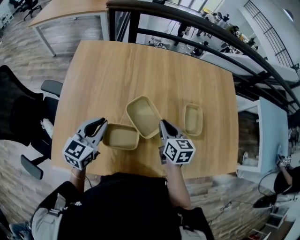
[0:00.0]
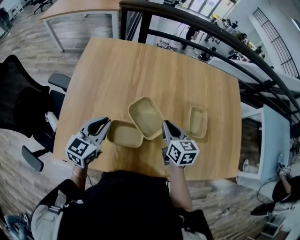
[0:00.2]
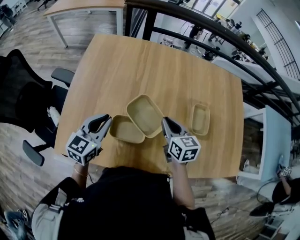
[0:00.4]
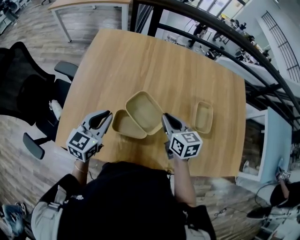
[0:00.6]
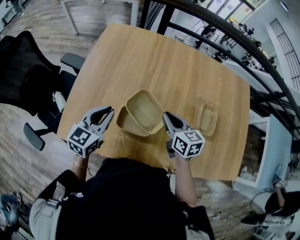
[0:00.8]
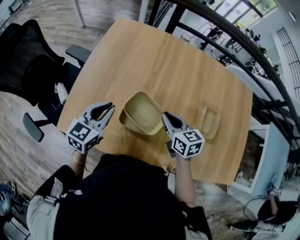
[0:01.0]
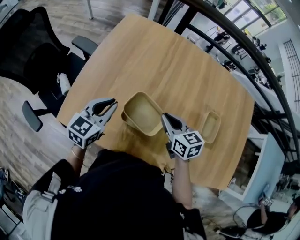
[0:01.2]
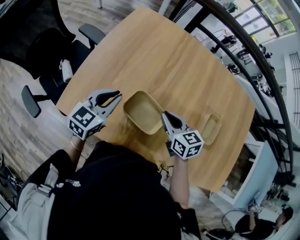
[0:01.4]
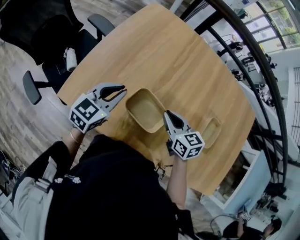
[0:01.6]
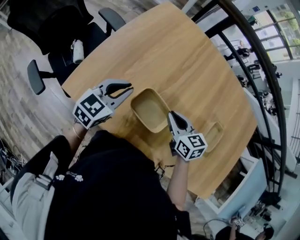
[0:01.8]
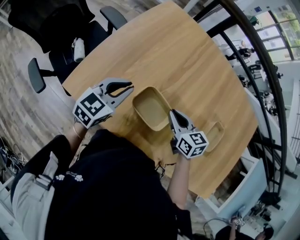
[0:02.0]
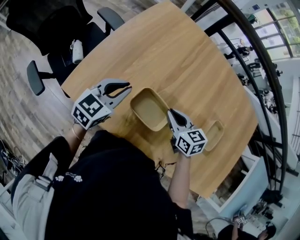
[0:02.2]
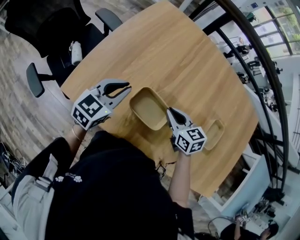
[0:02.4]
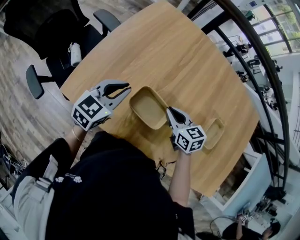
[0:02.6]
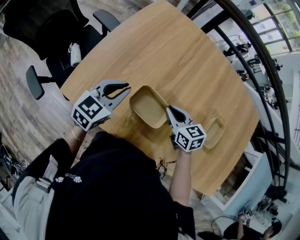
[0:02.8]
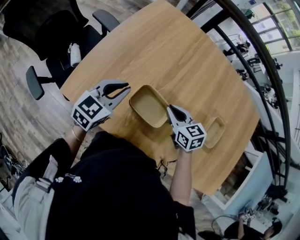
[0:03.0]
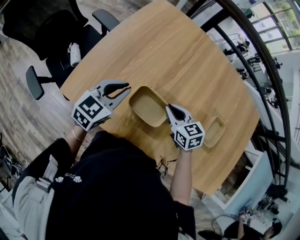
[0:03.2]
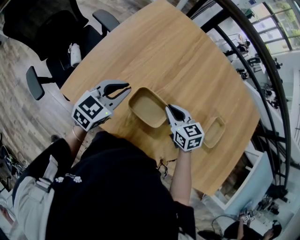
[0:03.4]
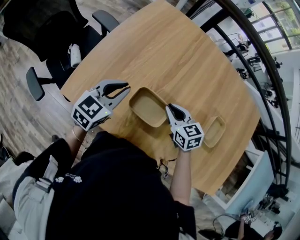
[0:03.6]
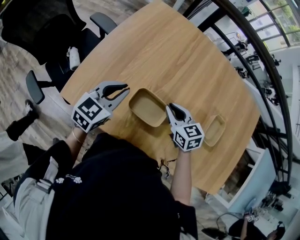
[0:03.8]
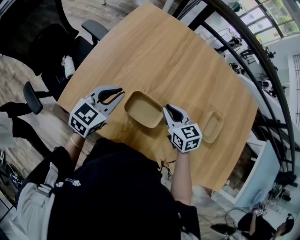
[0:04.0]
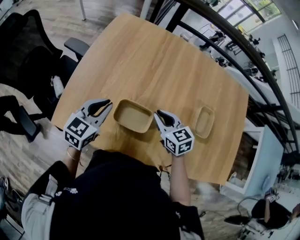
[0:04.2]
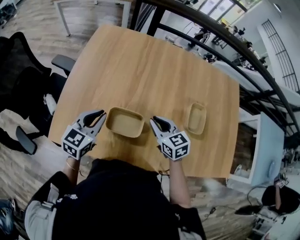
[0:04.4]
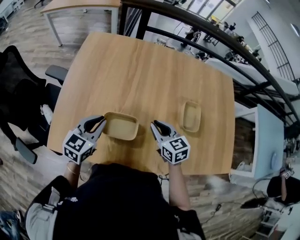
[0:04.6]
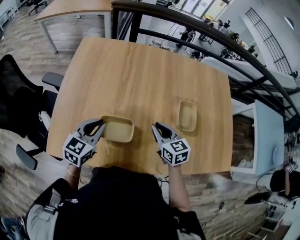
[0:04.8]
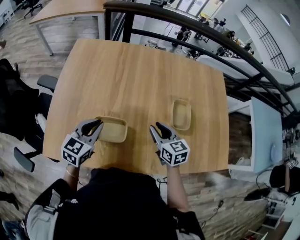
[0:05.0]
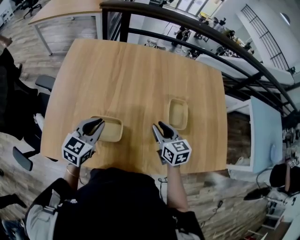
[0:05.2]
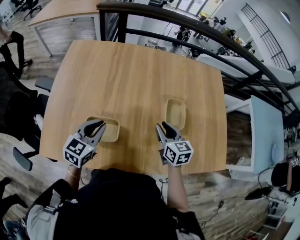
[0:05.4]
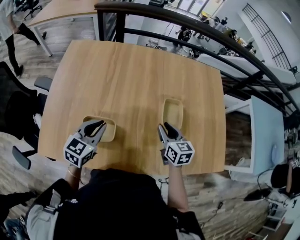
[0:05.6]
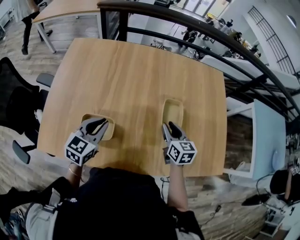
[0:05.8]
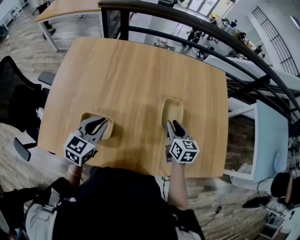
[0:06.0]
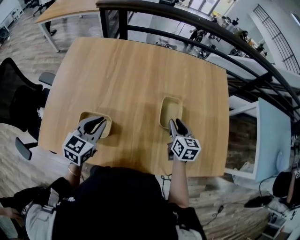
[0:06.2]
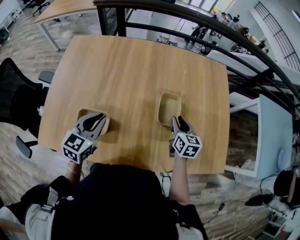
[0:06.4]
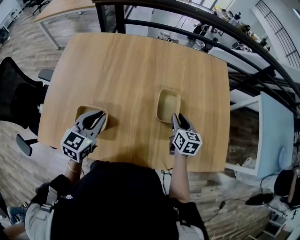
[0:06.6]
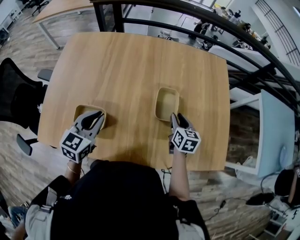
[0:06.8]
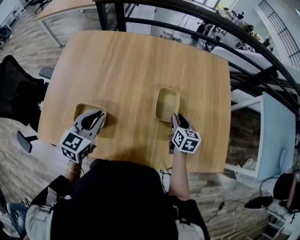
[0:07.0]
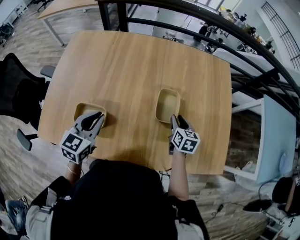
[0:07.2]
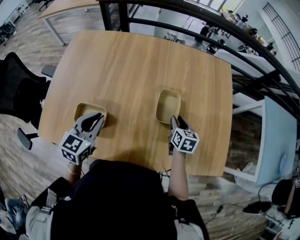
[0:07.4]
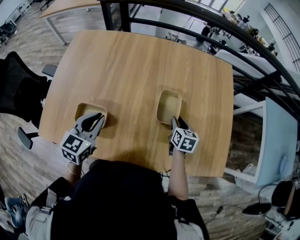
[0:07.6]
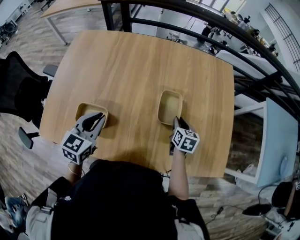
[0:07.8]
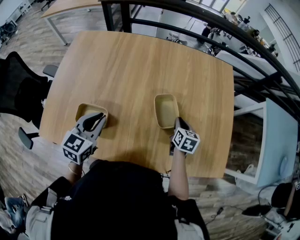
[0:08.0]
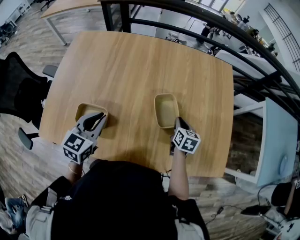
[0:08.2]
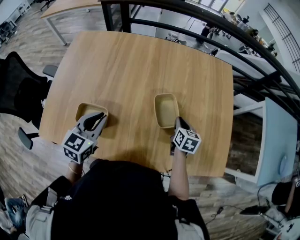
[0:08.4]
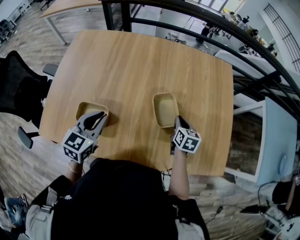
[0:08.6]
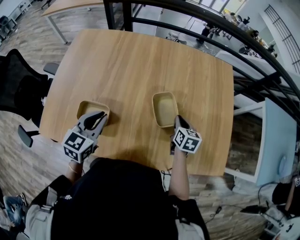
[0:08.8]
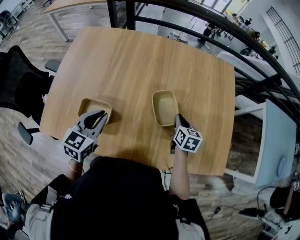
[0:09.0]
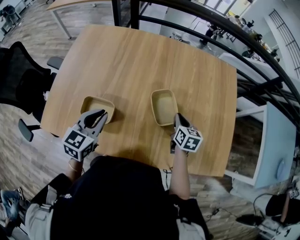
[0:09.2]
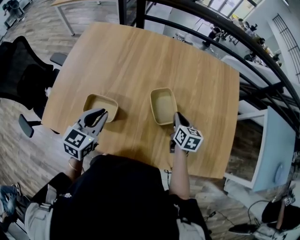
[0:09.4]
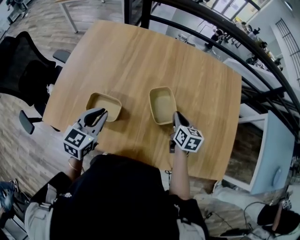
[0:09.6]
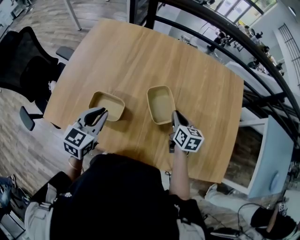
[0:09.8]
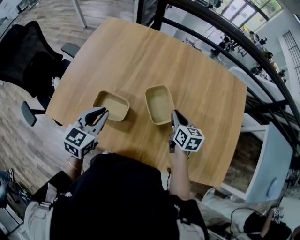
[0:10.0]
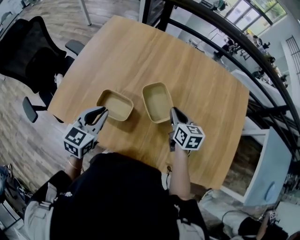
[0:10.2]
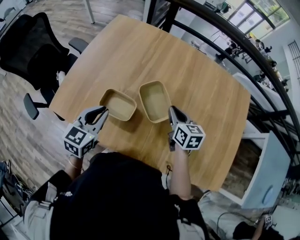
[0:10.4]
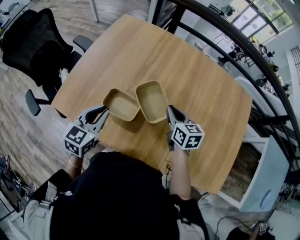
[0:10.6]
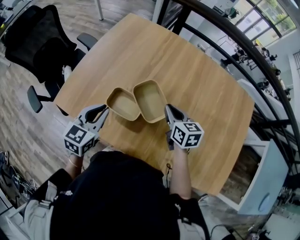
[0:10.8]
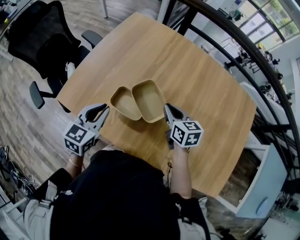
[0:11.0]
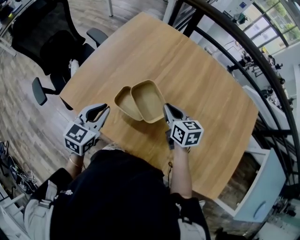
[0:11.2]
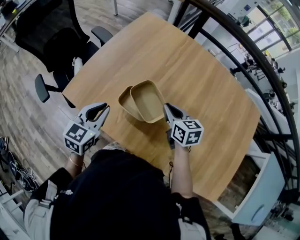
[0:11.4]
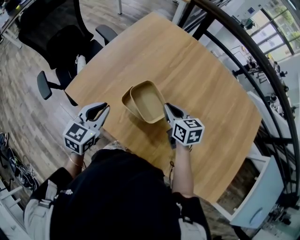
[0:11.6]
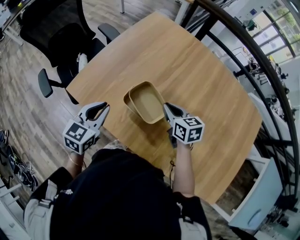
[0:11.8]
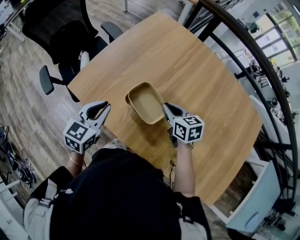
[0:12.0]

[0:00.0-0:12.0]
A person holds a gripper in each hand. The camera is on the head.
0:00.0 to 0:01.6: The right gripper changes place by approximately 10 cm, and turns by about 40 degrees; the left gripper shifts by about 10 cm.
0:01.6 to 0:03.0: There are only small adjustments of the grippers.
0:03.0 to 0:04.4: The right gripper ends up some 5 cm from where it was.
0:04.4 to 0:06.0: The left gripper moves to the right, about 15 cm; the right gripper travels to the right by about 25 cm, and changes its angle by roughly 30 degrees.
0:06.0 to 0:07.6: The right gripper is displaced to the right and downward by approximately 10 cm.
0:07.6 to 0:09.0: The grippers stay close to where they were, moving slightly.
0:09.0 to 0:10.4: The right gripper goes approximately 20 cm to the left, and turns by some 30 degrees. The left gripper shifts roughly 10 cm to the left.
0:10.4 to 0:12.0: The right gripper heads to the left, covering about 15 cm, and turns by about 30 degrees. Meanwhile the left gripper moves to the left, approximately 10 cm.

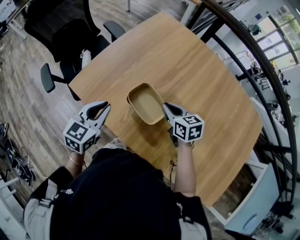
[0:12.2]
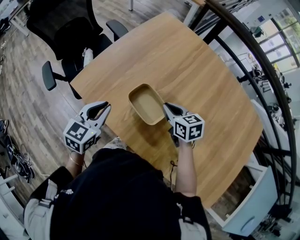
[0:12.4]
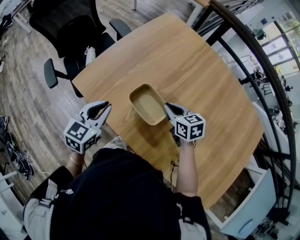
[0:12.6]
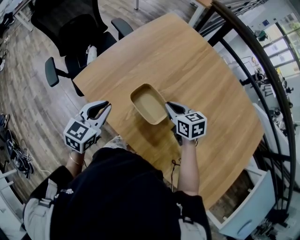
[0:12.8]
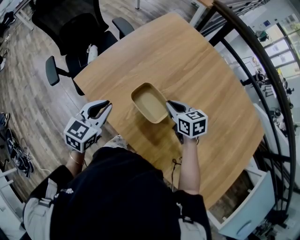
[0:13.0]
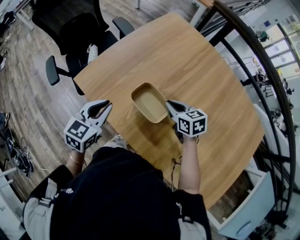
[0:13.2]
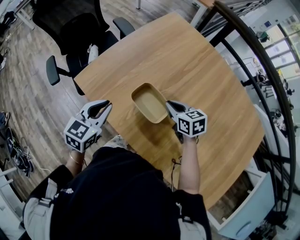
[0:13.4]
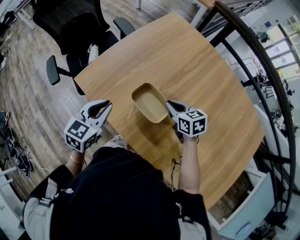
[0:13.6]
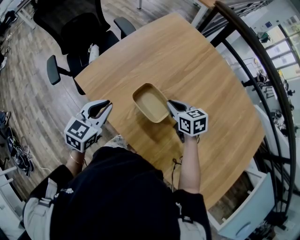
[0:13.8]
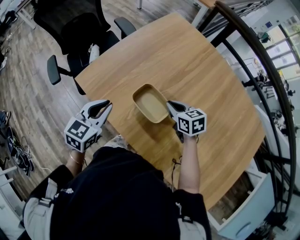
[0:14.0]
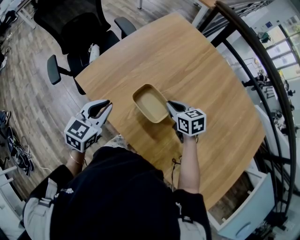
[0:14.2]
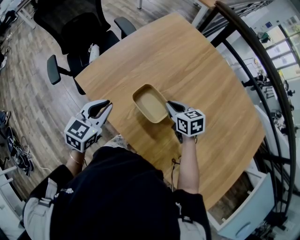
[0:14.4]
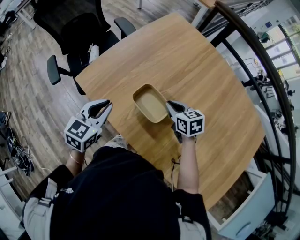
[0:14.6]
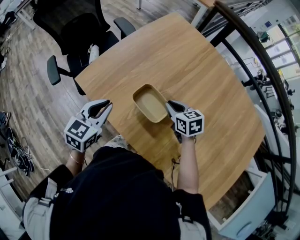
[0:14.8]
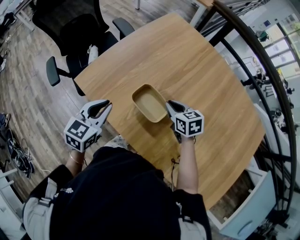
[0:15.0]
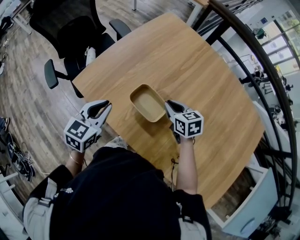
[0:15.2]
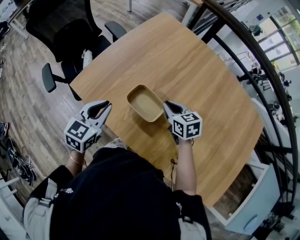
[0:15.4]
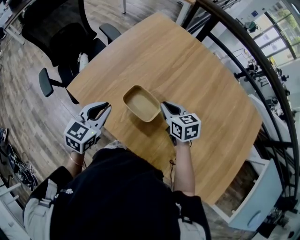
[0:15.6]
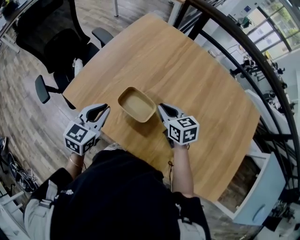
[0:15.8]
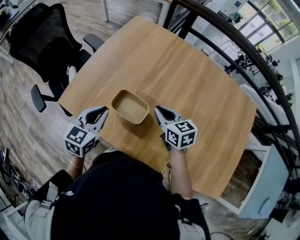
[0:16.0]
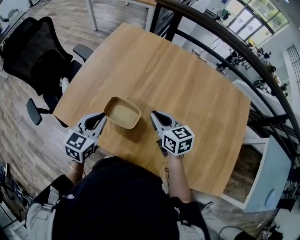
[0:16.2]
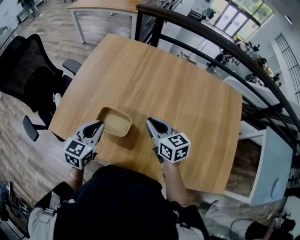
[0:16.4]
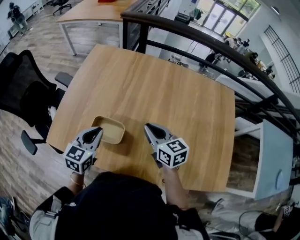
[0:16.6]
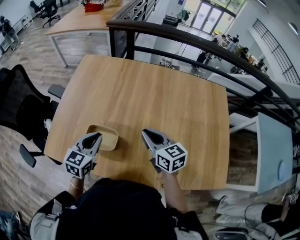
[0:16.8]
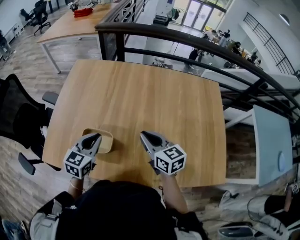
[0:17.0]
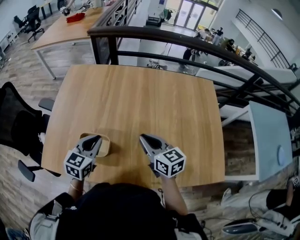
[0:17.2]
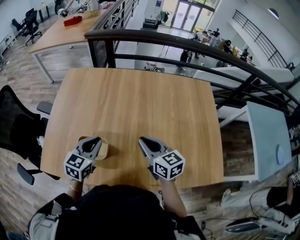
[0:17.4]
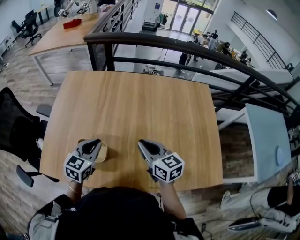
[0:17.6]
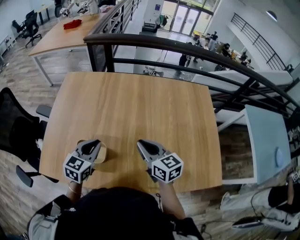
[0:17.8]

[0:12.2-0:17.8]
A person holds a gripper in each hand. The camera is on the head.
0:12.2 to 0:15.0: The grippers stay close to where they were, moving slightly.
0:15.0 to 0:16.4: The right gripper moves upward, to the right and backward, some 15 cm, and changes its angle by about 30 degrees, while the left gripper shifts roughly 10 cm to the right.
0:16.4 to 0:17.8: Both grippers move to the right, about 10 cm.

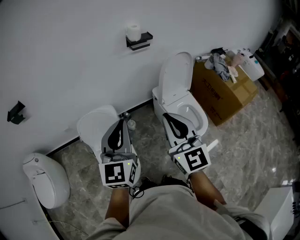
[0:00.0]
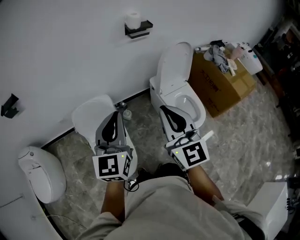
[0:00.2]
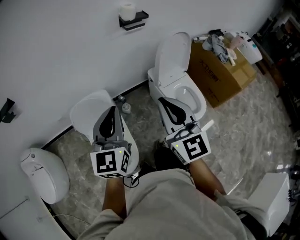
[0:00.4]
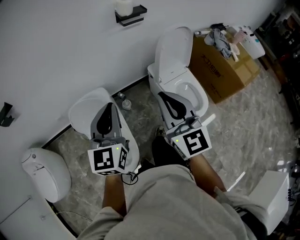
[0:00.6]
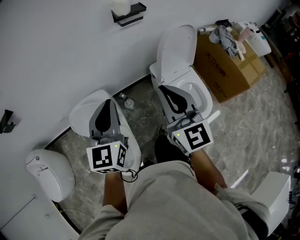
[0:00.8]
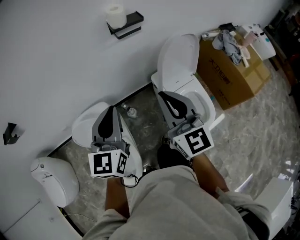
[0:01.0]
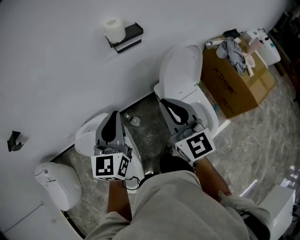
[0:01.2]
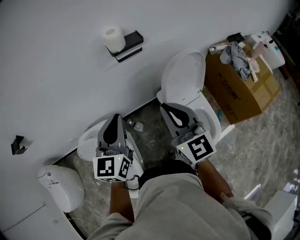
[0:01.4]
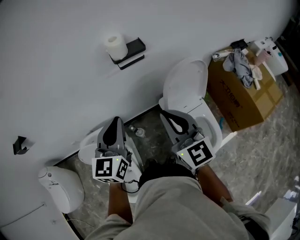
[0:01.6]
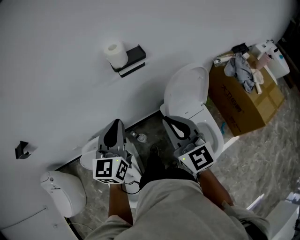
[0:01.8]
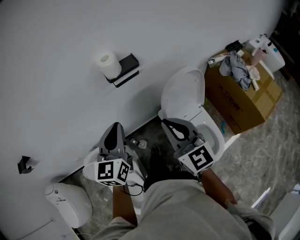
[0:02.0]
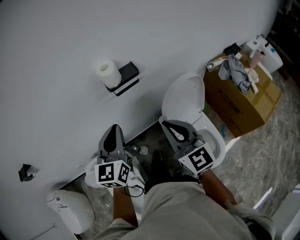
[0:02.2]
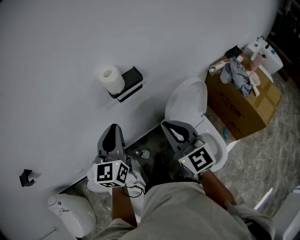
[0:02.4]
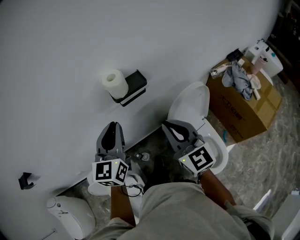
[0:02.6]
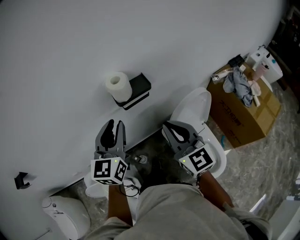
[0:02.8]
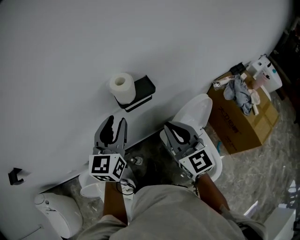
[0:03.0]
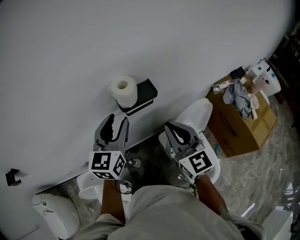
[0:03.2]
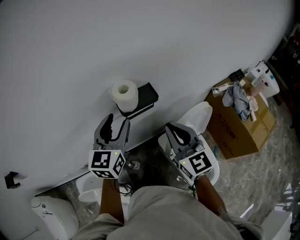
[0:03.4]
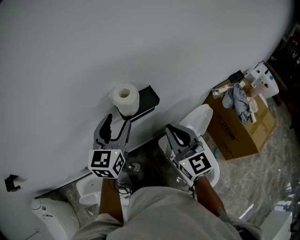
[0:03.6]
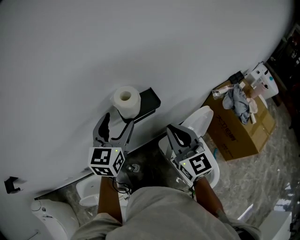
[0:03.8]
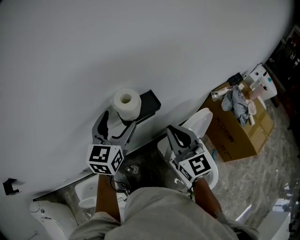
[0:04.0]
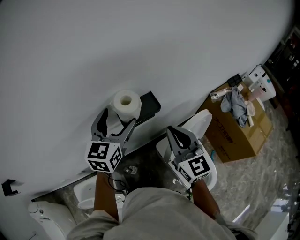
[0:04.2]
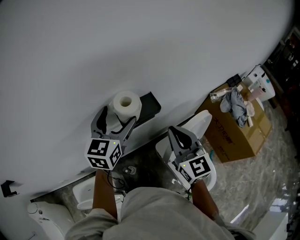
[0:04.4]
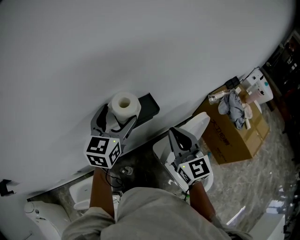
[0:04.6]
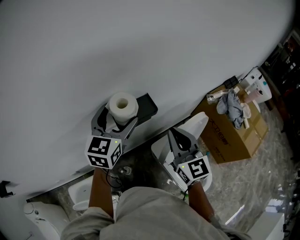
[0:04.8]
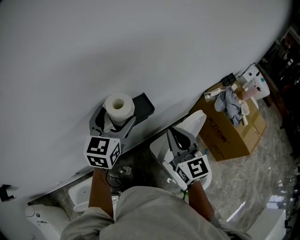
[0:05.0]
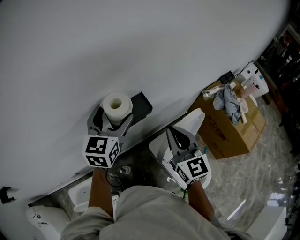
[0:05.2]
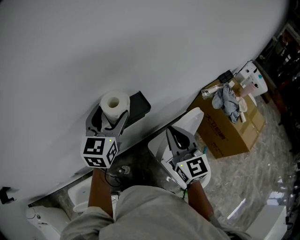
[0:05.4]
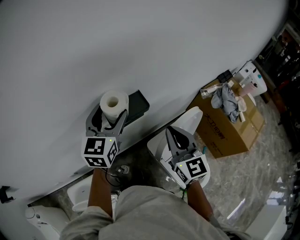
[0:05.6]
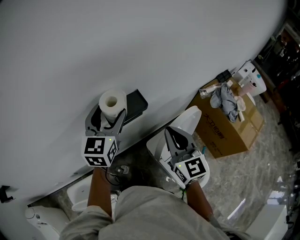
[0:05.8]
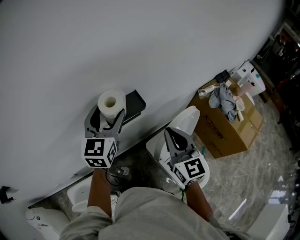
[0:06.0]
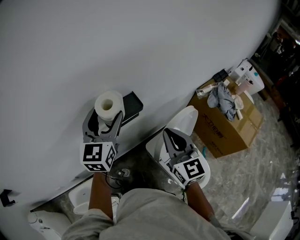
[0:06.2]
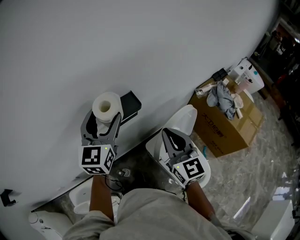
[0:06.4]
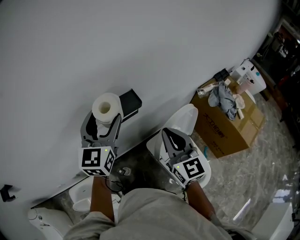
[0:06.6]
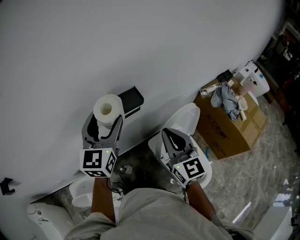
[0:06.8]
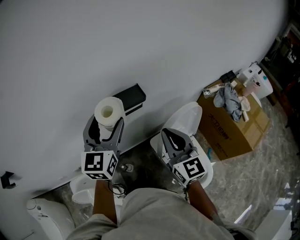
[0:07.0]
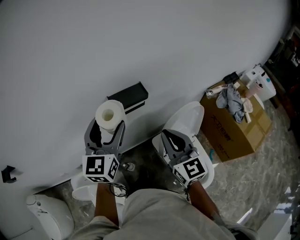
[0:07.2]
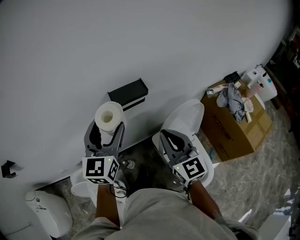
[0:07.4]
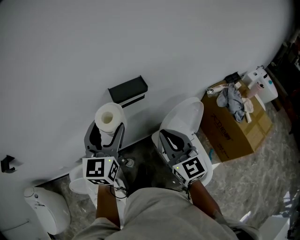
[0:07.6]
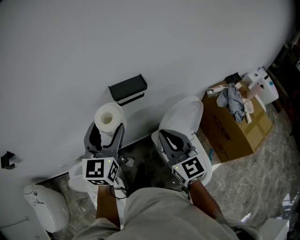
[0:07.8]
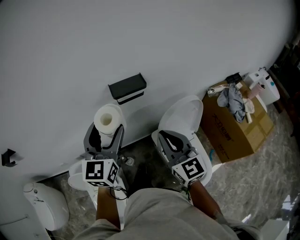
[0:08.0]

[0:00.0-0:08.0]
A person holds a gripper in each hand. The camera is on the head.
0:00.0 to 0:01.6: The left gripper is displaced forward by some 30 cm. Meanwhile the right gripper heads forward and to the right, covering some 35 cm.
0:01.6 to 0:03.2: Both grippers move forward, about 20 cm. The left gripper opens up.
0:03.2 to 0:04.8: The left gripper goes roughly 10 cm forward, and opens up. Meanwhile the right gripper shifts about 5 cm forward.
0:04.8 to 0:06.4: The right gripper ends up about 5 cm from where it was; the left gripper shifts by roughly 5 cm.
0:06.4 to 0:08.0: The left gripper goes some 20 cm backward. Meanwhile the right gripper is displaced backward by some 10 cm.
